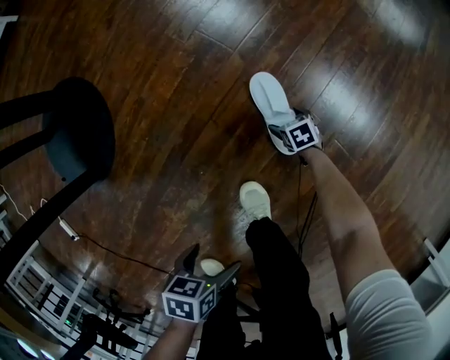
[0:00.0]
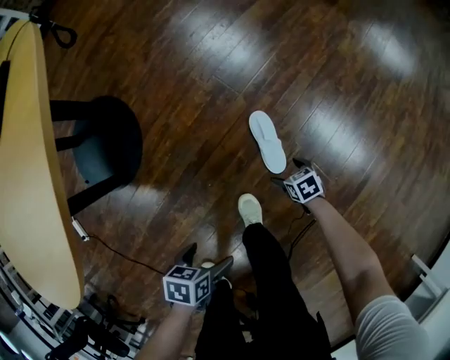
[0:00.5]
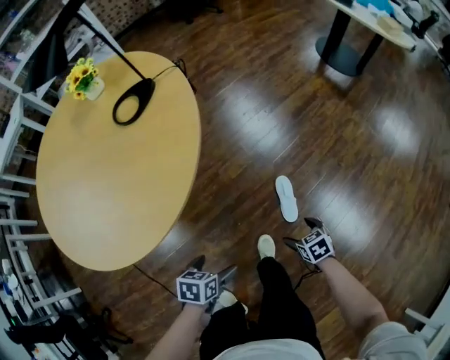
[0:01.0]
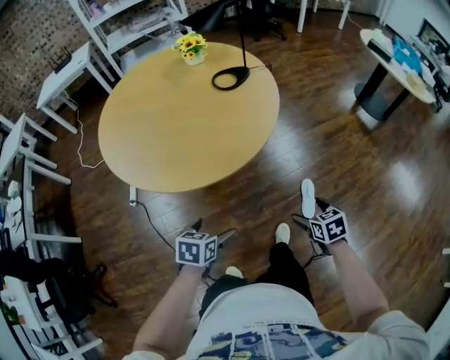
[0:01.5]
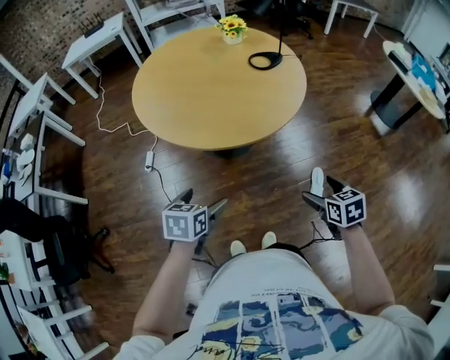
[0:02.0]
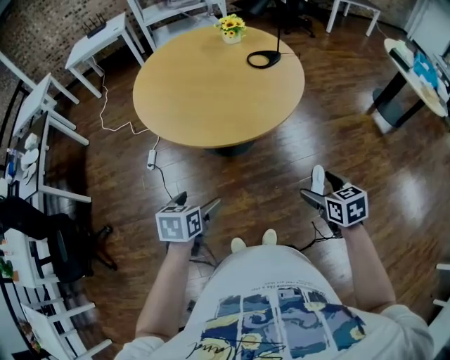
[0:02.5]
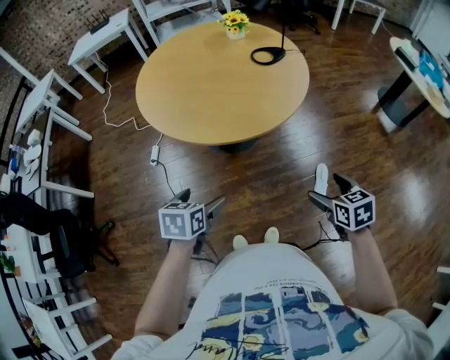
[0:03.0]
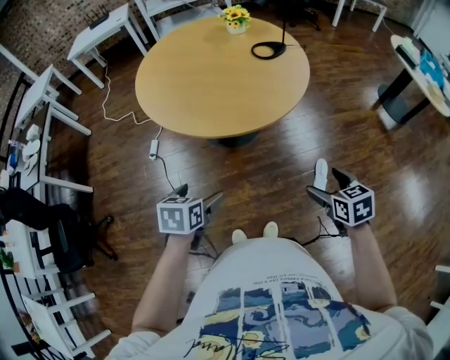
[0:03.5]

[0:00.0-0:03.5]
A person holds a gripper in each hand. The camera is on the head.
0:00.0 to 0:02.0: The two grippers travel together, about 50 cm. The grippers both shift upward by about 80 cm. The left gripper rotates about 60 degrees. Meanwhile the right gripper turns by roughly 40 degrees.
0:02.0 to 0:03.5: The grippers stay close to where they were, moving slightly.

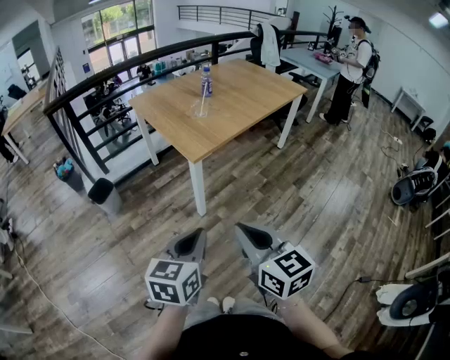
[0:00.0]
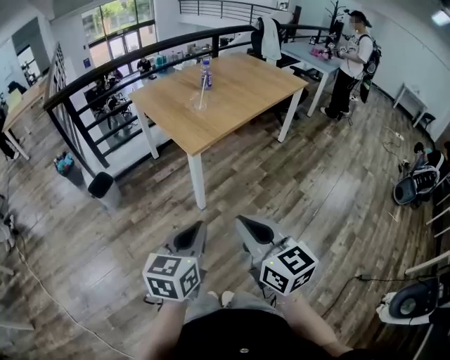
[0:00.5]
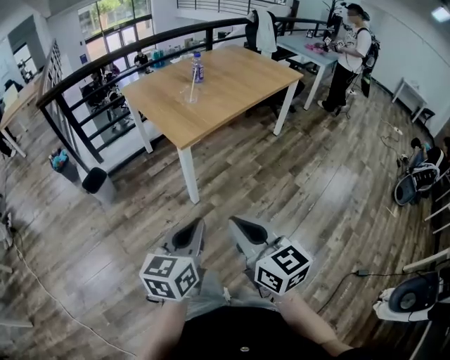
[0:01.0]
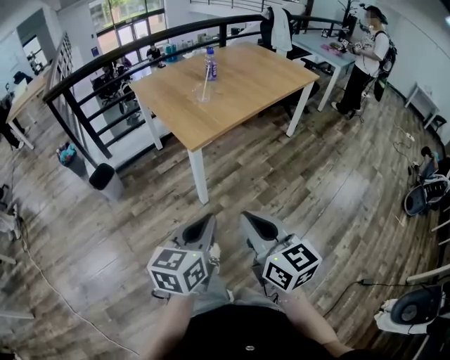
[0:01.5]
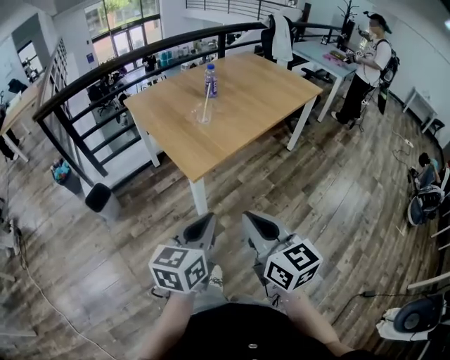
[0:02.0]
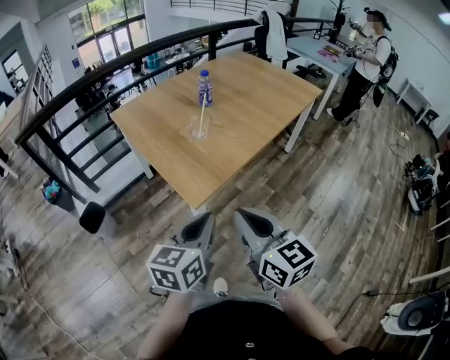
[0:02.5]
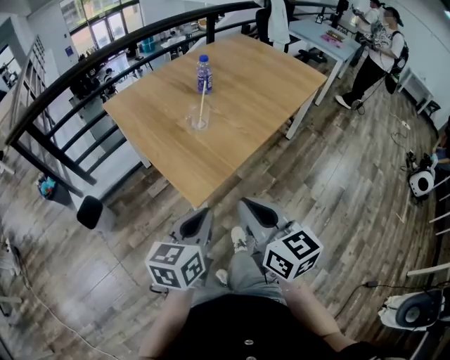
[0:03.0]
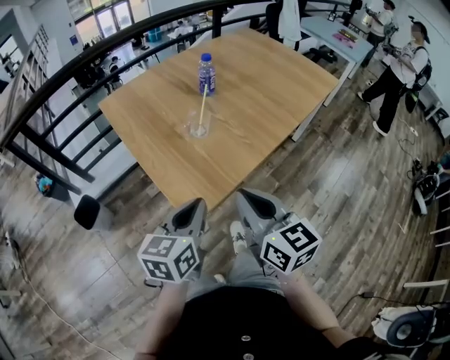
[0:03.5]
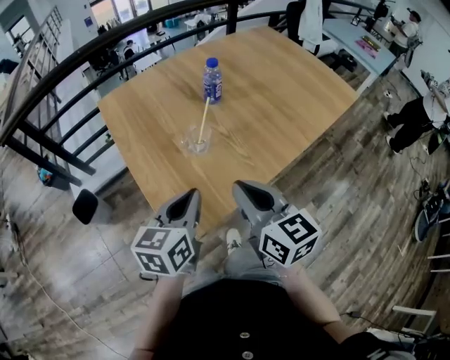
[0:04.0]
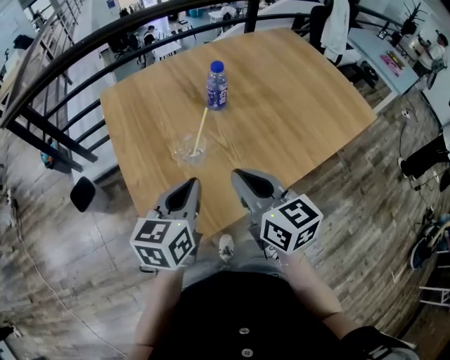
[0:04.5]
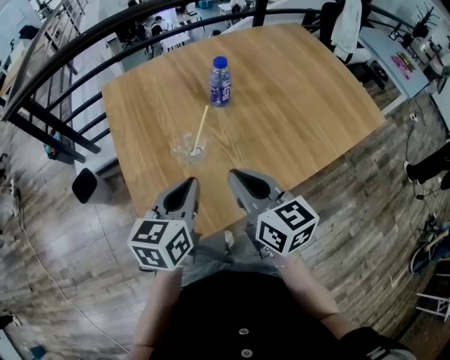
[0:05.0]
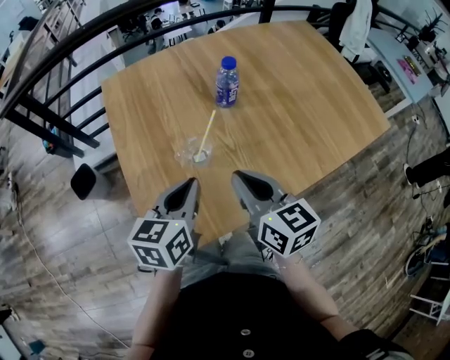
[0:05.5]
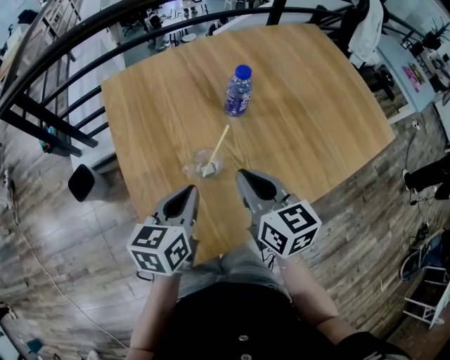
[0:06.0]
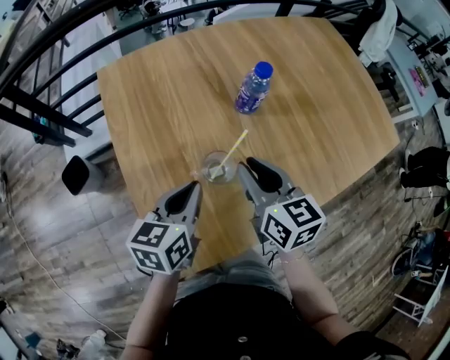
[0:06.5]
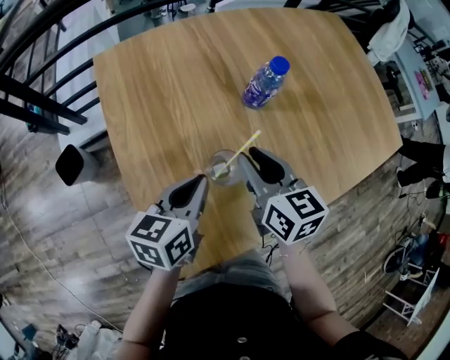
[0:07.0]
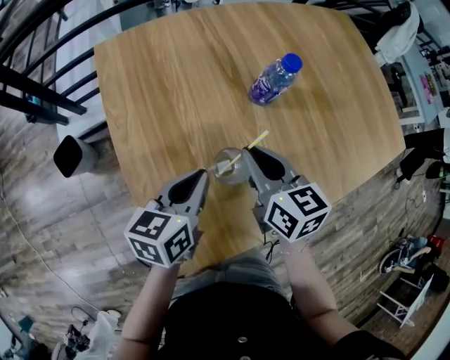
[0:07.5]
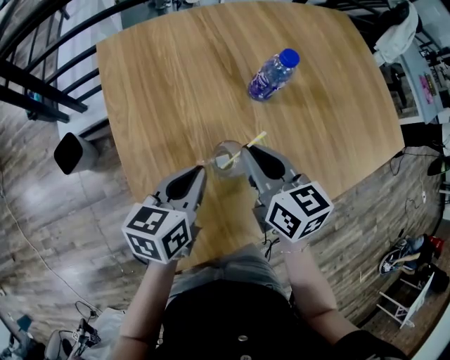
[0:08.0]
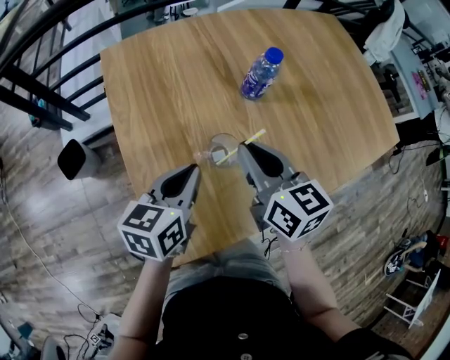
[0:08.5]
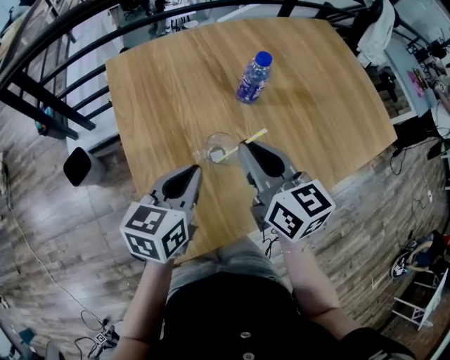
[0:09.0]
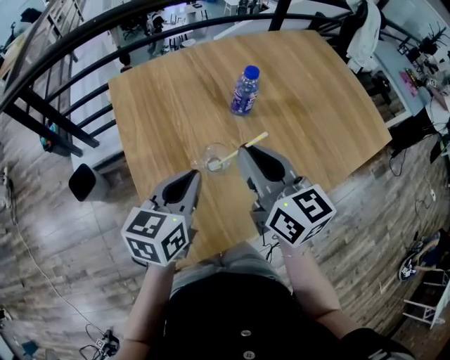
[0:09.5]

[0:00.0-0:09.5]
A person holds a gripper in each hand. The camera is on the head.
0:00.0 to 0:02.0: Both grippers move forward, roughly 20 cm.
0:02.0 to 0:04.0: The pair of grippers is taken forward, some 40 cm.
0:04.0 to 0:05.5: Both grippers move forward, roughly 15 cm.
0:05.5 to 0:07.5: Both grippers travel together forward, downward and to the left, about 15 cm.
0:07.5 to 0:09.5: Both grippers travel together upward and backward, about 15 cm.

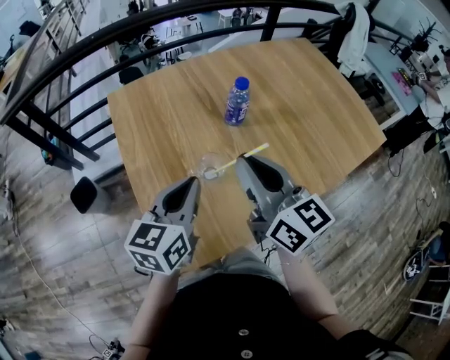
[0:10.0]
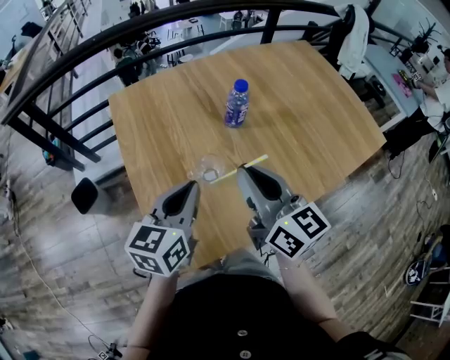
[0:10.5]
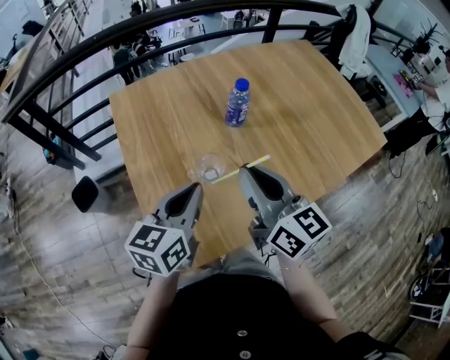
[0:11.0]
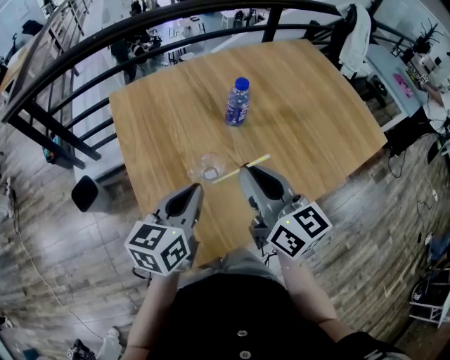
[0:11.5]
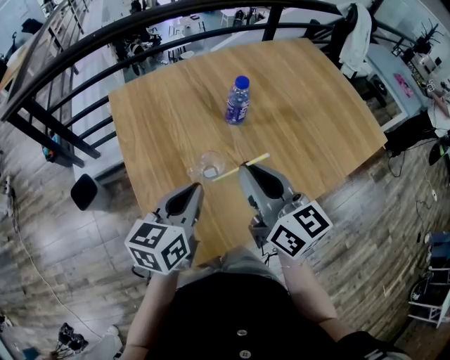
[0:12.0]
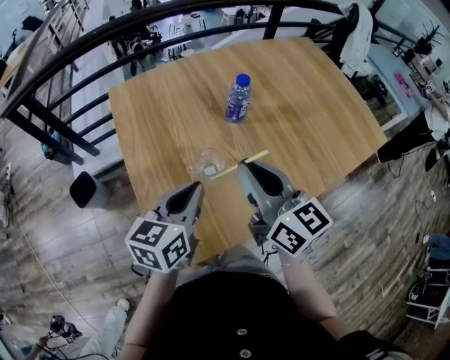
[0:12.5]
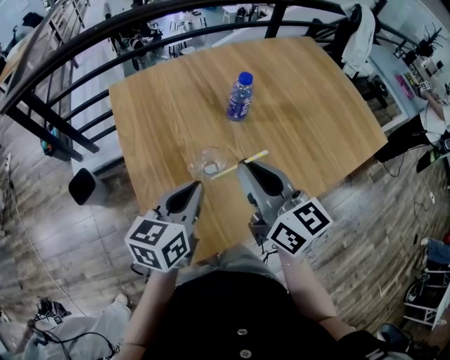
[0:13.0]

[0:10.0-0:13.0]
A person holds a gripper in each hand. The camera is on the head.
0:10.0 to 0:11.5: There are only small adjustments of the grippers.
0:11.5 to 0:13.0: Neither gripper changes place.

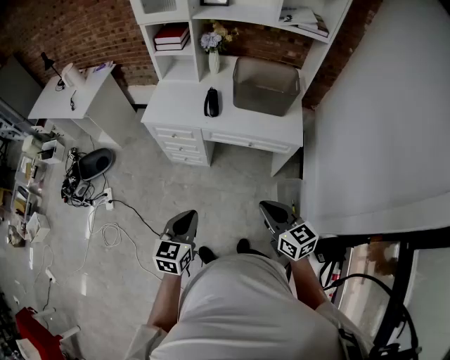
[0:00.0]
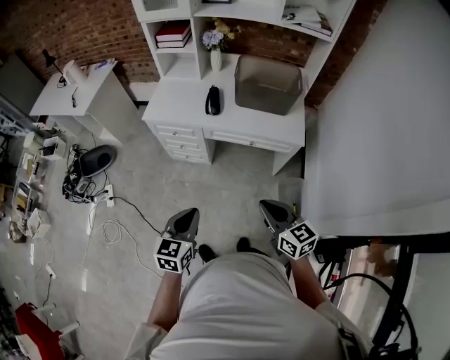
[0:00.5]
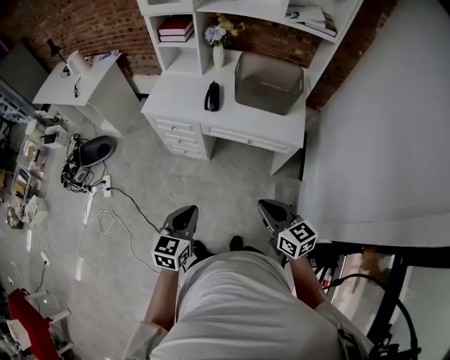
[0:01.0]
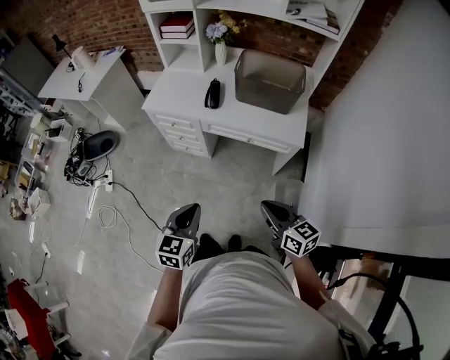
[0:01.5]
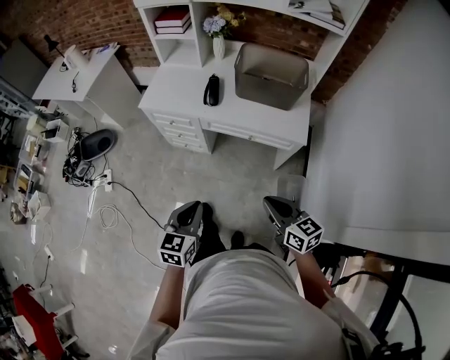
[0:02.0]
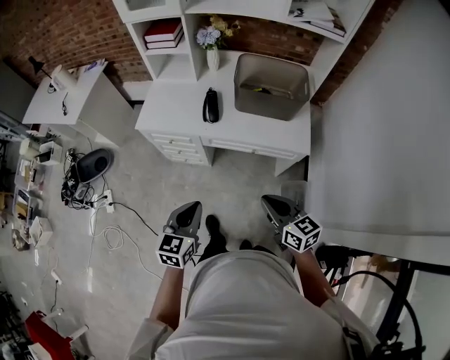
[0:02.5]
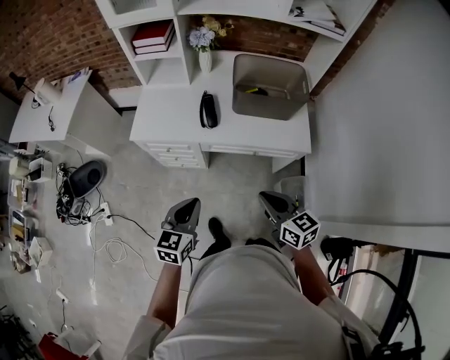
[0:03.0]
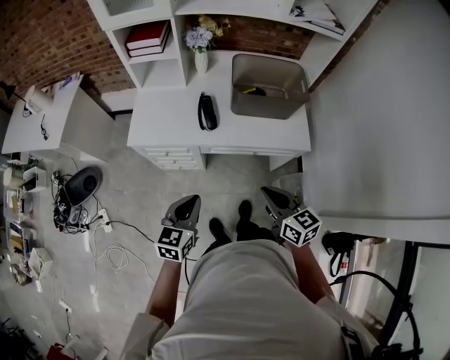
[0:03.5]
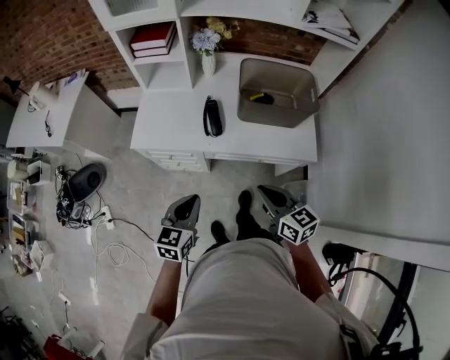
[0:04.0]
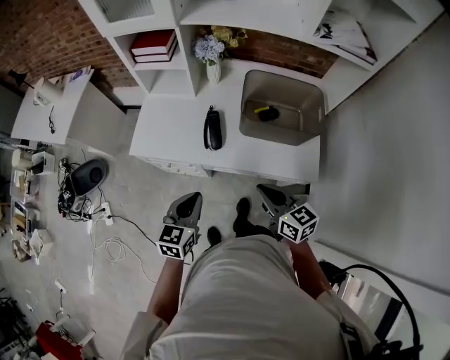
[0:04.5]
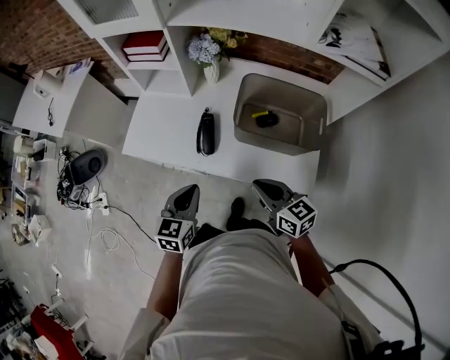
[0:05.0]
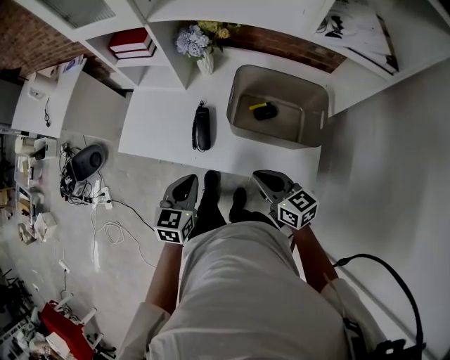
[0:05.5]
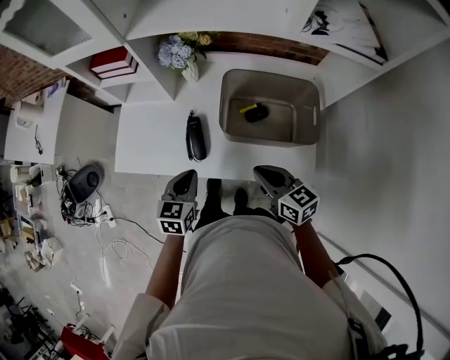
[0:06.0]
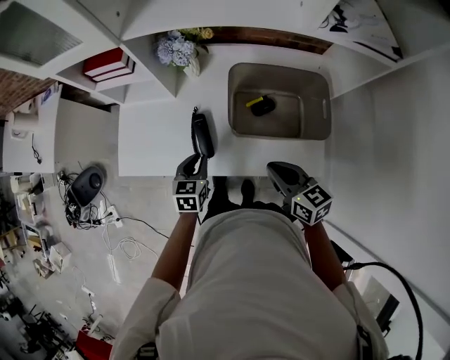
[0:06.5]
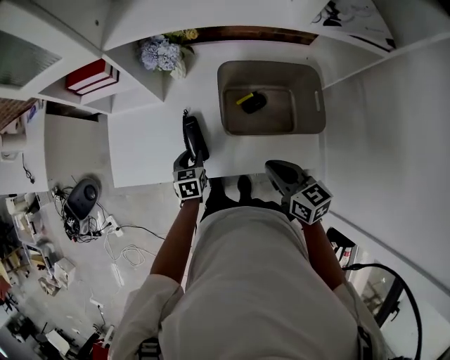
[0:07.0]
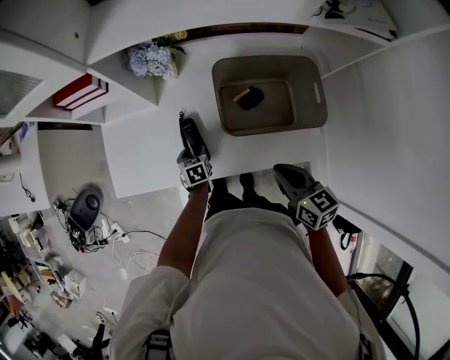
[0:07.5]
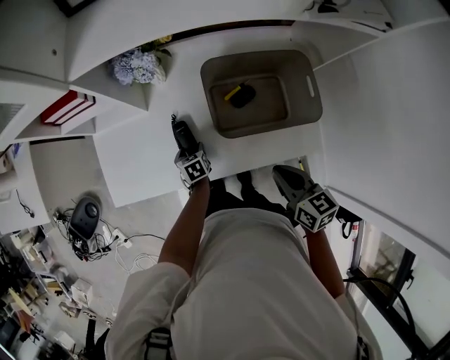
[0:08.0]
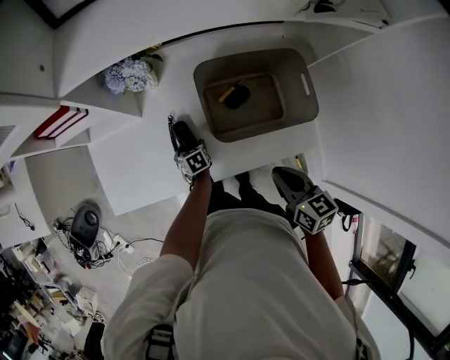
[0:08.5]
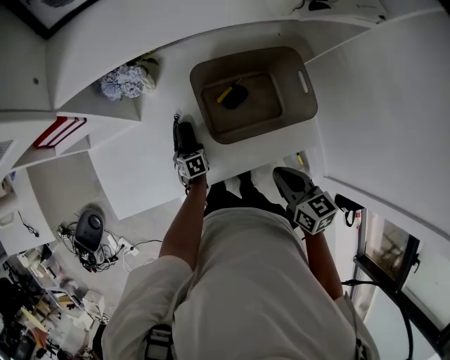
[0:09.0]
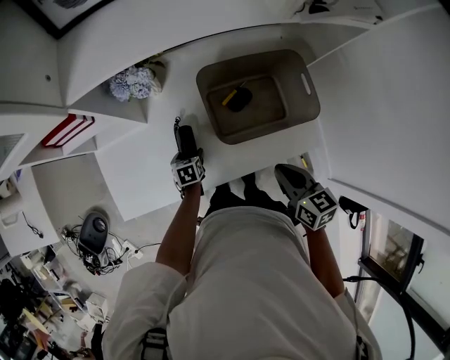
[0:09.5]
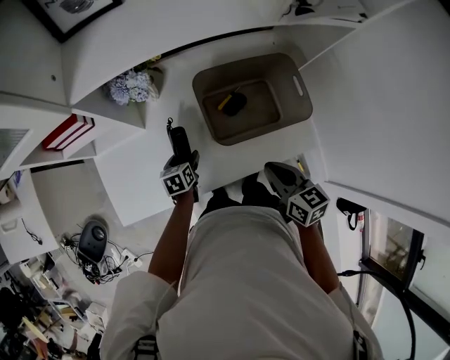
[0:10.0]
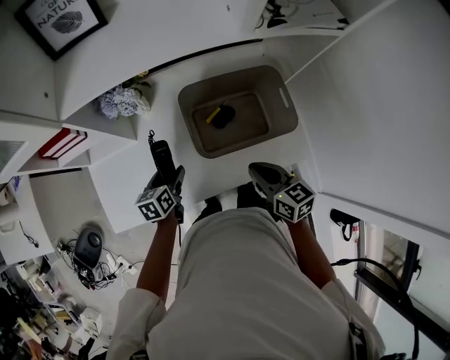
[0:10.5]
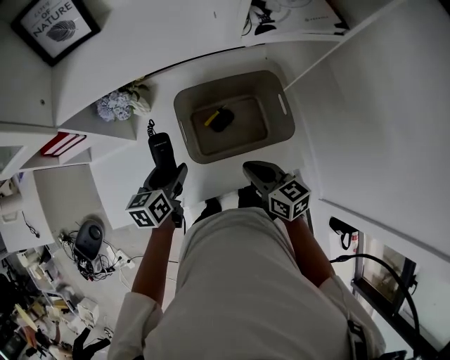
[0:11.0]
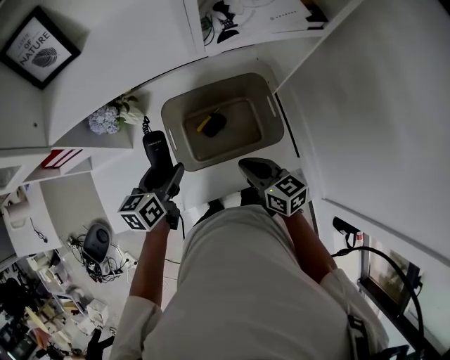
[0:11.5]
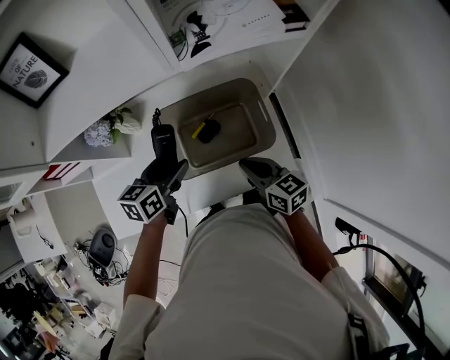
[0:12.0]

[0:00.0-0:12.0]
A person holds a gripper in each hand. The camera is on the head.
0:00.0 to 0:02.0: The grippers both shift to the right by approximately 10 cm.
0:02.0 to 0:04.0: The grippers both shift forward and to the left by about 25 cm.
0:04.0 to 0:06.0: Both grippers move forward and to the right, some 25 cm.
0:06.0 to 0:08.0: The right gripper turns by some 30 degrees, while the left gripper is displaced downward and forward by some 30 cm, swivels about 30 degrees, and opens.
0:08.0 to 0:10.0: The left gripper moves upward, approximately 5 cm.
0:10.0 to 0:12.0: The left gripper heads upward and to the right, covering some 25 cm, and rotates approximately 20 degrees; the right gripper goes some 15 cm to the right and forward.
